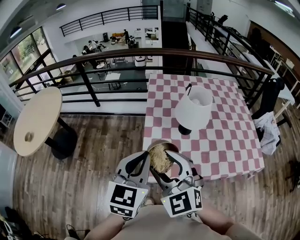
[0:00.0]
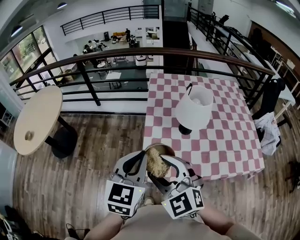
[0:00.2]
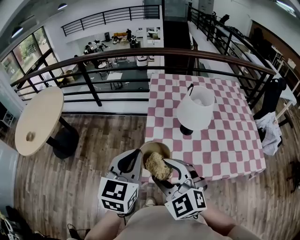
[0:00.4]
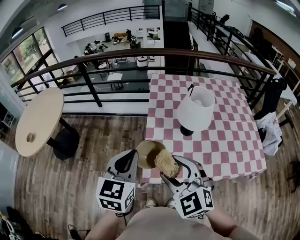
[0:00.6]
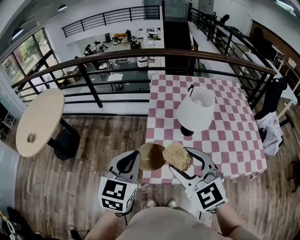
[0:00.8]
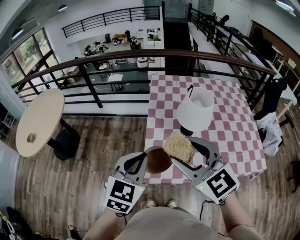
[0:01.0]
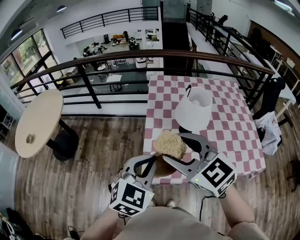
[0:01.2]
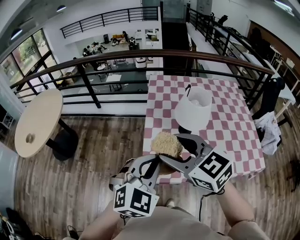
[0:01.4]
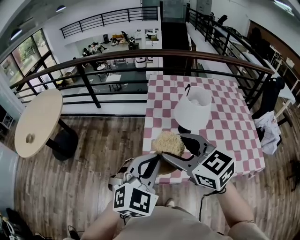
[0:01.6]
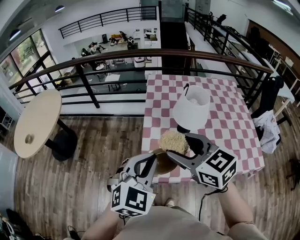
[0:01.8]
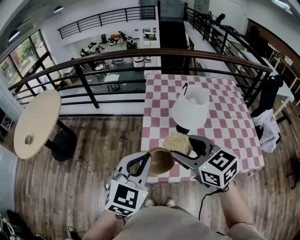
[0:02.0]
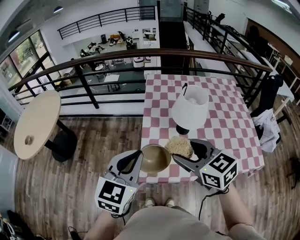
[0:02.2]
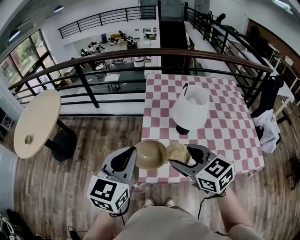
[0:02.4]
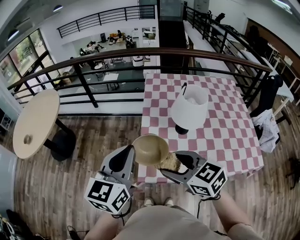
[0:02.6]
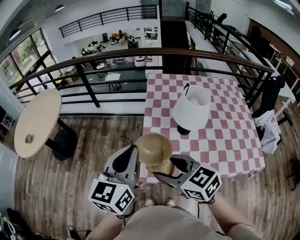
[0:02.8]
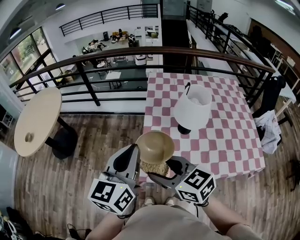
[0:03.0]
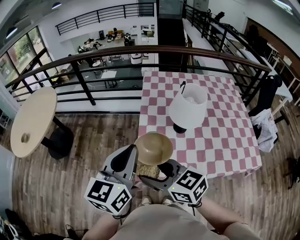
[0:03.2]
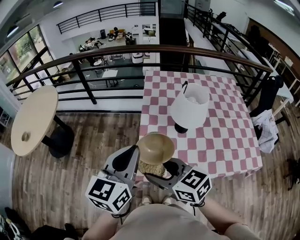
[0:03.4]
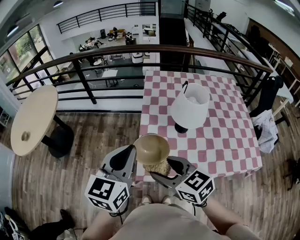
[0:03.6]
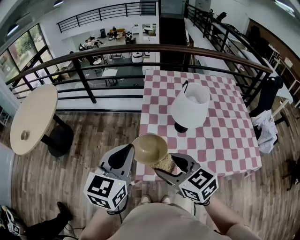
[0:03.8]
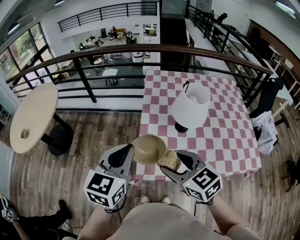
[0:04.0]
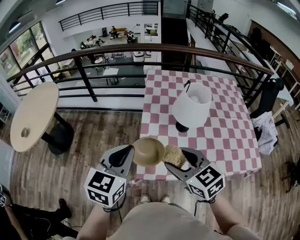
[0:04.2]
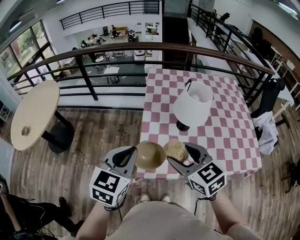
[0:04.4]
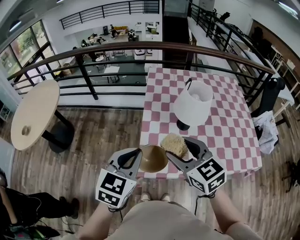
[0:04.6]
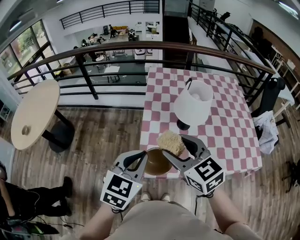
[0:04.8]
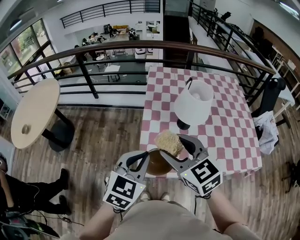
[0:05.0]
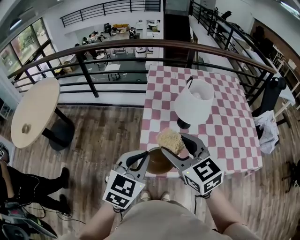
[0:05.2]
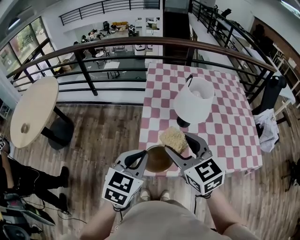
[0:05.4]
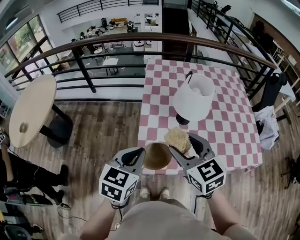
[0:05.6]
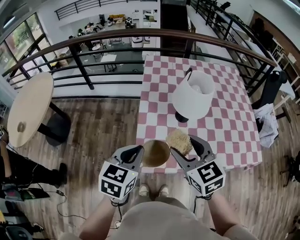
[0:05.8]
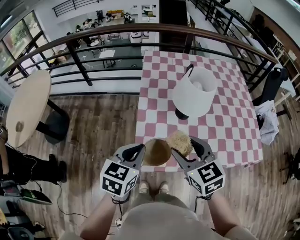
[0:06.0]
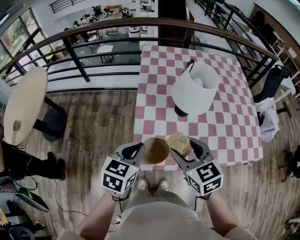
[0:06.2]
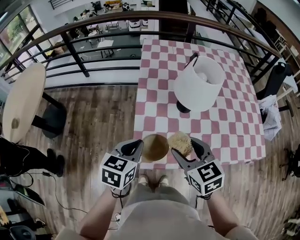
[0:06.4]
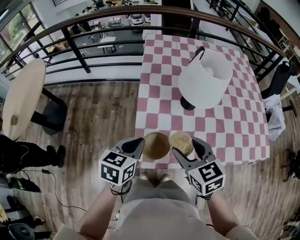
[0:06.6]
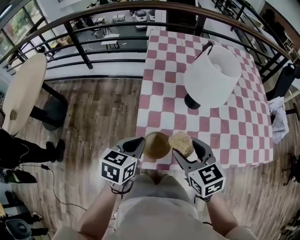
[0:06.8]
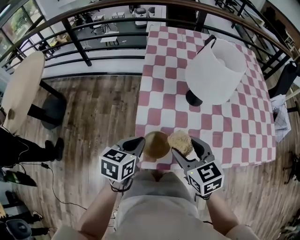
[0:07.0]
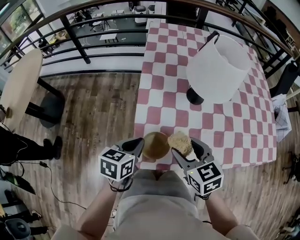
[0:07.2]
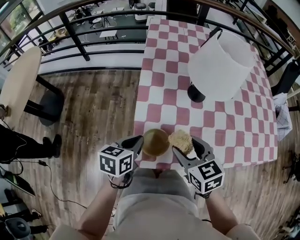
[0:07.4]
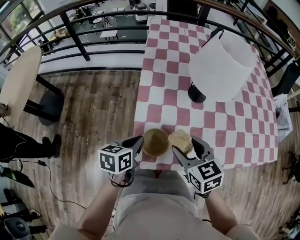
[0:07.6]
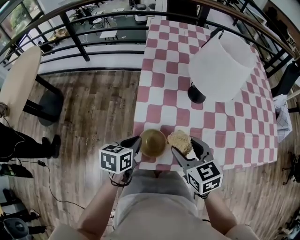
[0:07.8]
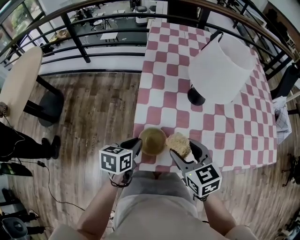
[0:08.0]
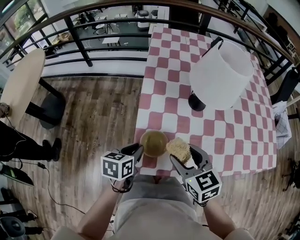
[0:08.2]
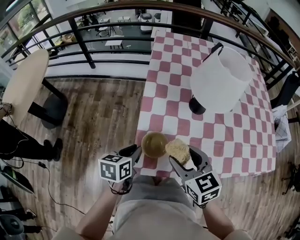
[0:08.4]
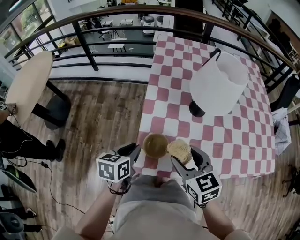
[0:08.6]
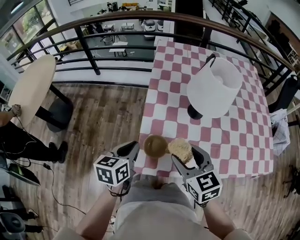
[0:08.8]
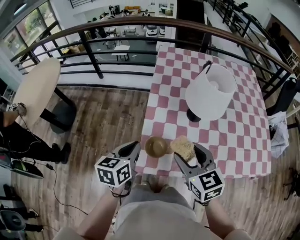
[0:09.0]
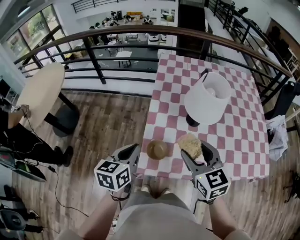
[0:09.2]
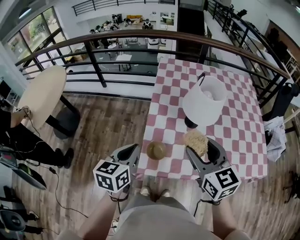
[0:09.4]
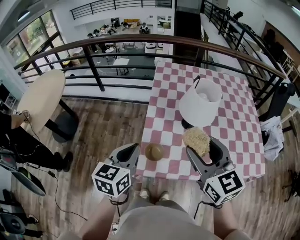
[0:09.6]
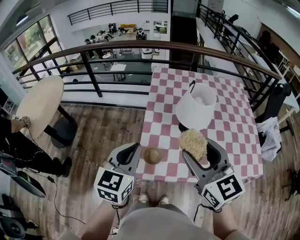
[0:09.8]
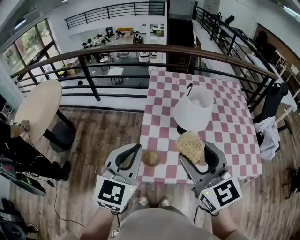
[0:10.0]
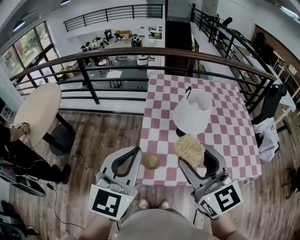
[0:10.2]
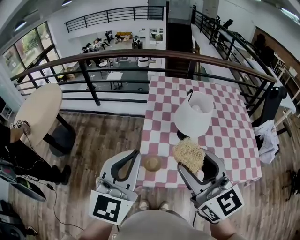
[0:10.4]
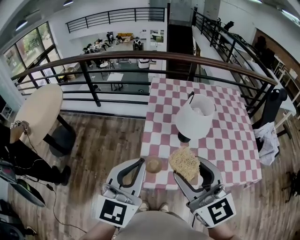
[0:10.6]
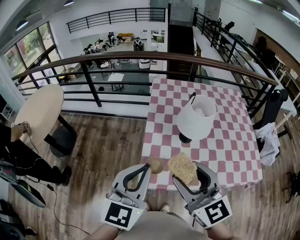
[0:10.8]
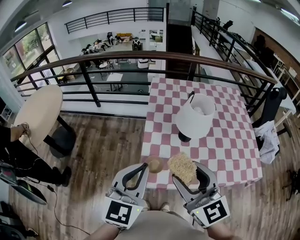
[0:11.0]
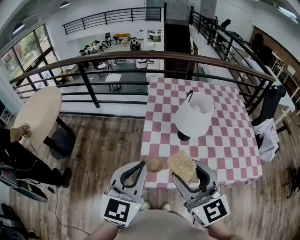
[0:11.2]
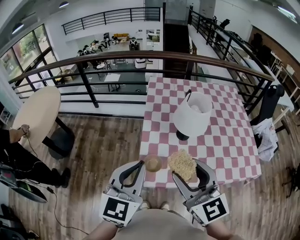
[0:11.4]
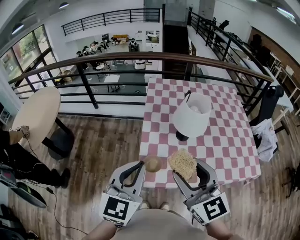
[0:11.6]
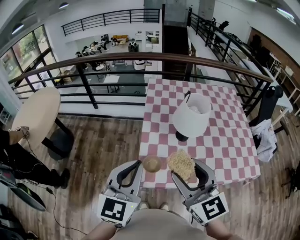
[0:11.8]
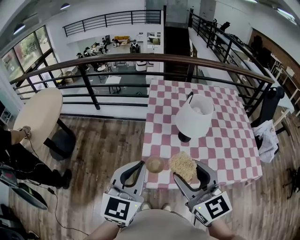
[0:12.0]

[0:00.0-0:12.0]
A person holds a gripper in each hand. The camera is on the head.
0:00.0 to 0:01.6: The left gripper turns by roughly 30 degrees. Meanwhile the right gripper shifts by about 5 cm, and swivels some 30 degrees.
0:01.6 to 0:03.0: The right gripper shifts approximately 5 cm downward; the left gripper moves to the left, approximately 5 cm, and rotates around the line of its fingers by some 50 degrees, counterclockwise from behind.
0:03.0 to 0:04.4: The right gripper goes approximately 10 cm to the right. The left gripper goes approximately 5 cm downward, and changes its angle by roughly 30 degrees.
0:04.4 to 0:06.0: The right gripper shifts by about 5 cm; the left gripper is displaced downward by about 10 cm.
0:06.0 to 0:07.6: The grippers both shift downward by about 25 cm. The left gripper rotates some 30 degrees.
0:07.6 to 0:09.0: Both grippers travel together upward, roughly 15 cm.
0:09.0 to 0:10.4: Both grippers move upward, roughly 25 cm. The left gripper turns by some 40 degrees. Meanwhile the right gripper swivels about 20 degrees.
0:10.4 to 0:12.0: The two grippers go about 5 cm downward.

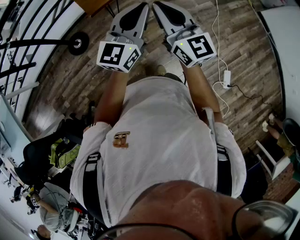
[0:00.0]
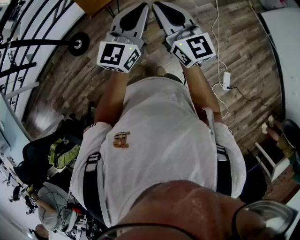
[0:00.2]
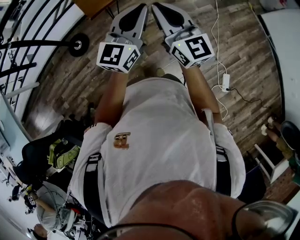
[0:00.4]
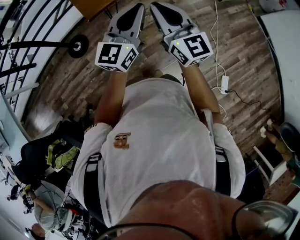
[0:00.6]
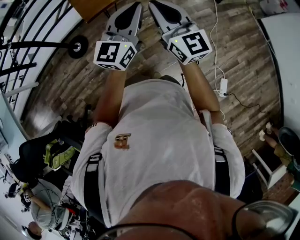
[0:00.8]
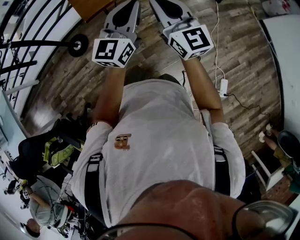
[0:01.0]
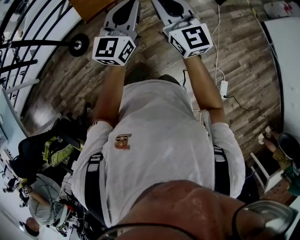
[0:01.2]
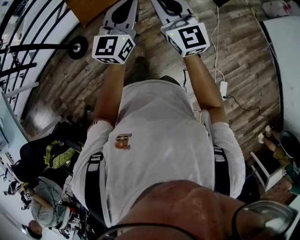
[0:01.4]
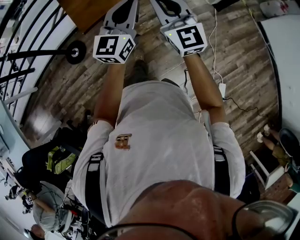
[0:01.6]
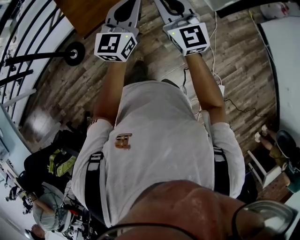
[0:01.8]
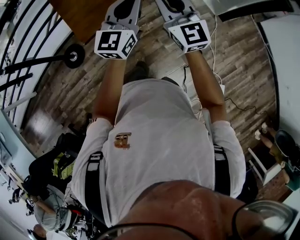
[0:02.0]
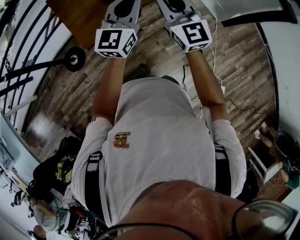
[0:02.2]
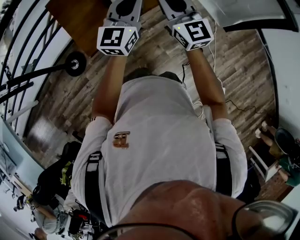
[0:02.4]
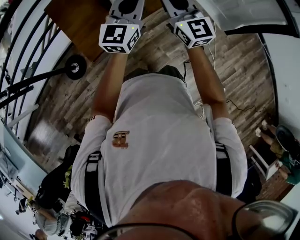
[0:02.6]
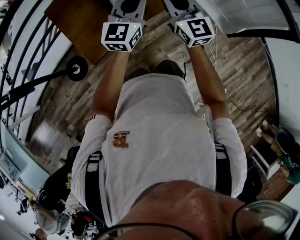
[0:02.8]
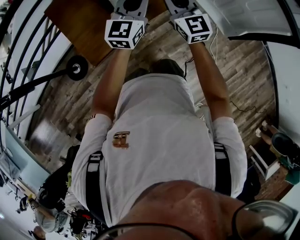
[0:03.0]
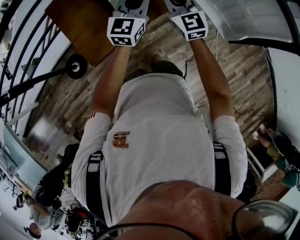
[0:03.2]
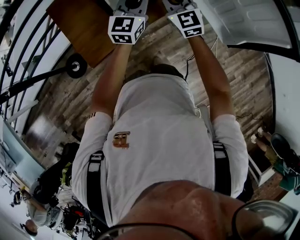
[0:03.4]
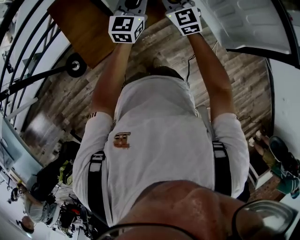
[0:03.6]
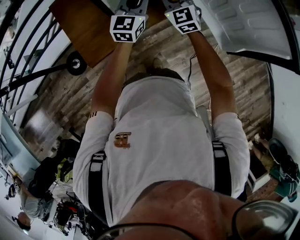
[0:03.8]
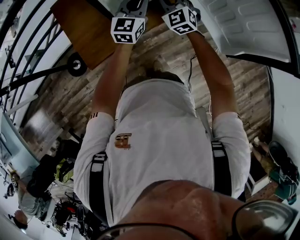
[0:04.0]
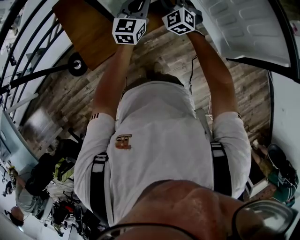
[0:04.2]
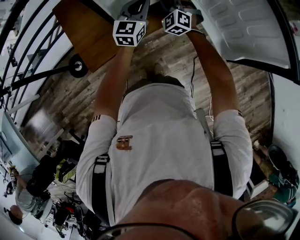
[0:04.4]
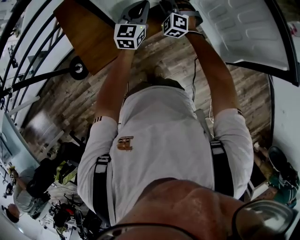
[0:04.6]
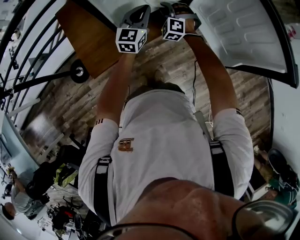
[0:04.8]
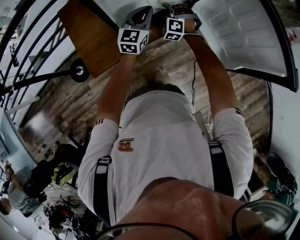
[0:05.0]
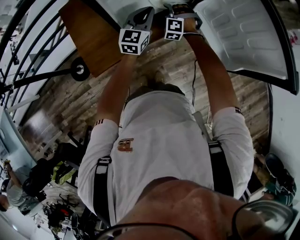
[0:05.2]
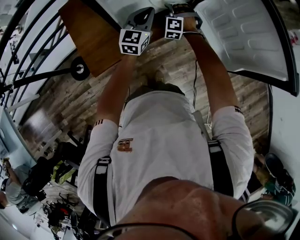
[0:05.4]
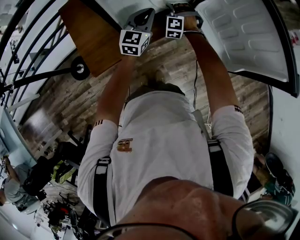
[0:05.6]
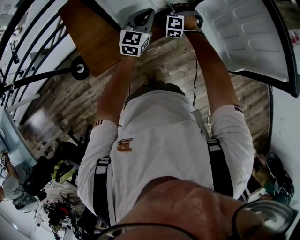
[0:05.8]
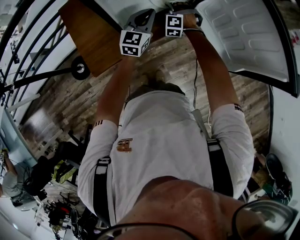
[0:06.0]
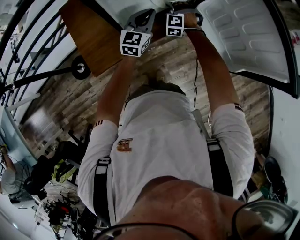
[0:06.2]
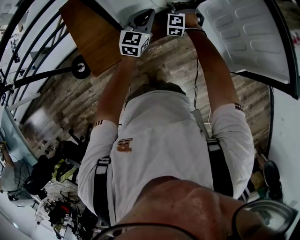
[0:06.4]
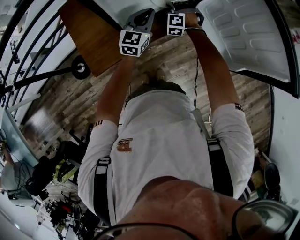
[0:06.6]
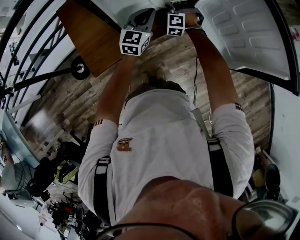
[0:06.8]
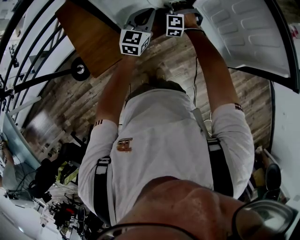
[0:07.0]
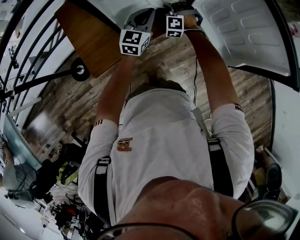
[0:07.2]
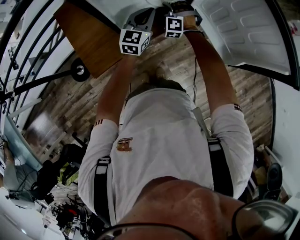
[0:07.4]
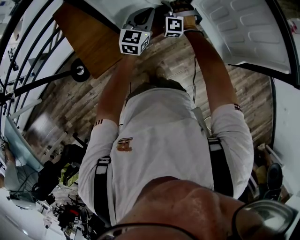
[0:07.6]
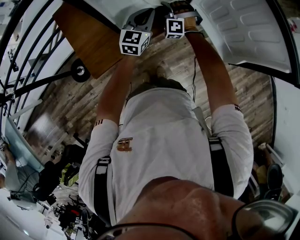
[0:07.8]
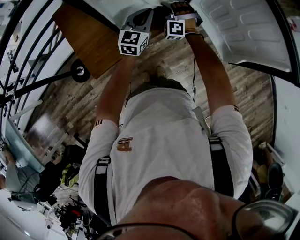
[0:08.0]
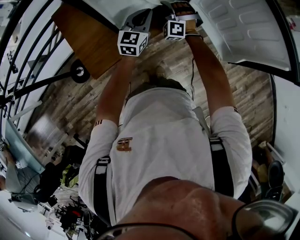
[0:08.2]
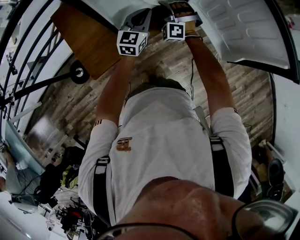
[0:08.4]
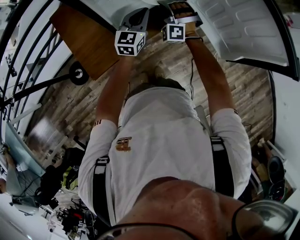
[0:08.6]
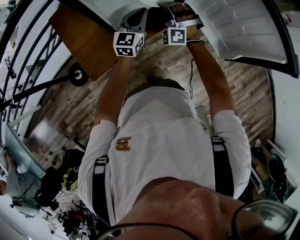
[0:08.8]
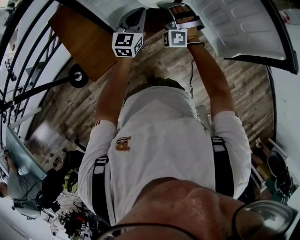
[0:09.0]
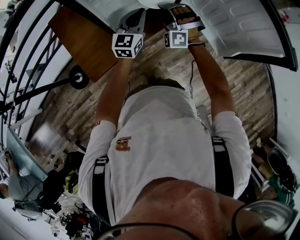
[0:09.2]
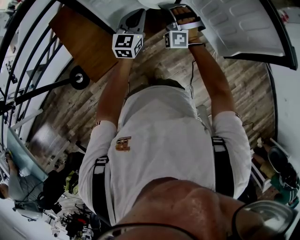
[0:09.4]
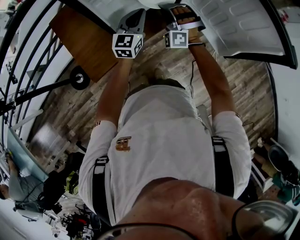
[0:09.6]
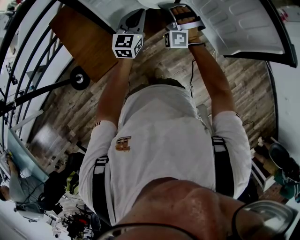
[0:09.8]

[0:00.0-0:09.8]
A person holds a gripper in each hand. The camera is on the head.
0:00.0 to 0:01.4: Both grippers travel together forward and to the right, roughly 15 cm.
0:01.4 to 0:02.8: The grippers both shift forward by roughly 40 cm.
0:02.8 to 0:04.2: Both grippers travel together forward and downward, some 20 cm. The right gripper rotates some 40 degrees.
0:04.2 to 0:05.6: The right gripper heads downward, covering roughly 10 cm, changes its angle by about 40 degrees, and opens up.
0:05.6 to 0:07.0: The grippers make only small movements.
0:07.0 to 0:08.4: The right gripper shifts about 5 cm upward, and swivels approximately 20 degrees.
0:08.4 to 0:09.8: The right gripper heads upward, covering approximately 5 cm.

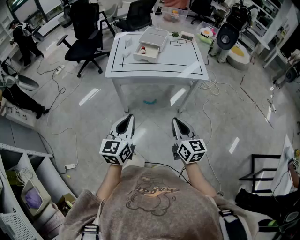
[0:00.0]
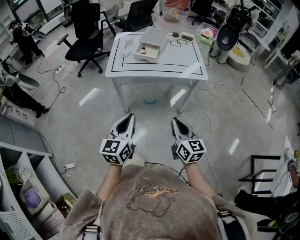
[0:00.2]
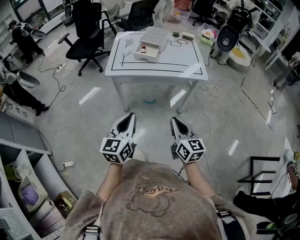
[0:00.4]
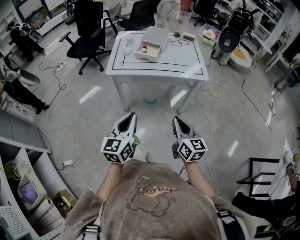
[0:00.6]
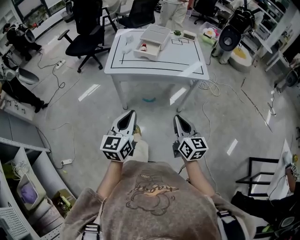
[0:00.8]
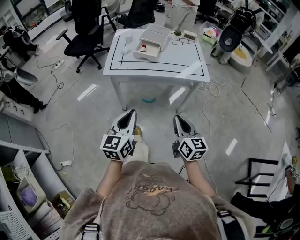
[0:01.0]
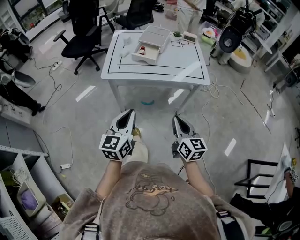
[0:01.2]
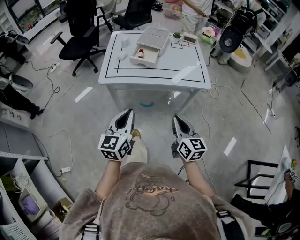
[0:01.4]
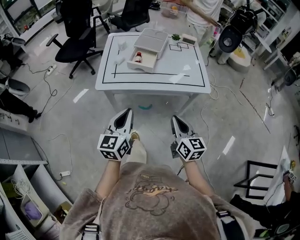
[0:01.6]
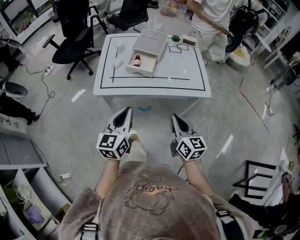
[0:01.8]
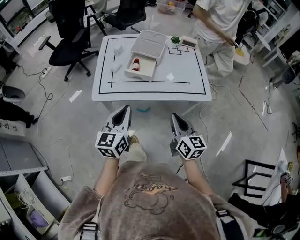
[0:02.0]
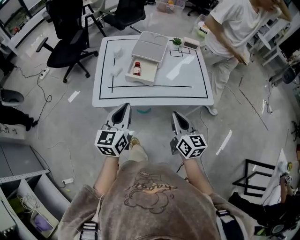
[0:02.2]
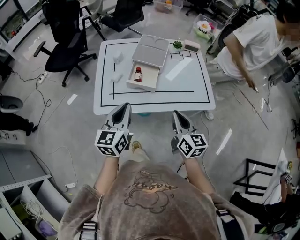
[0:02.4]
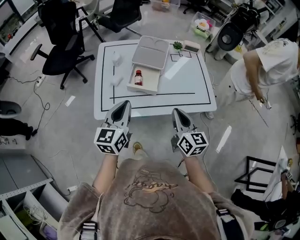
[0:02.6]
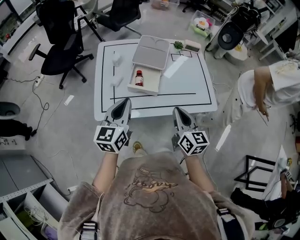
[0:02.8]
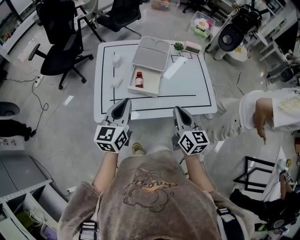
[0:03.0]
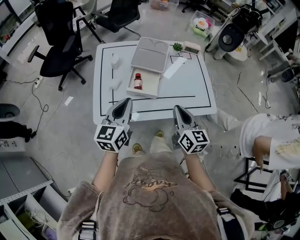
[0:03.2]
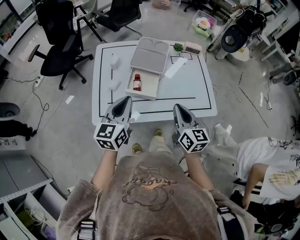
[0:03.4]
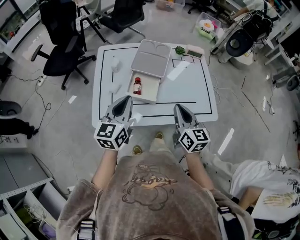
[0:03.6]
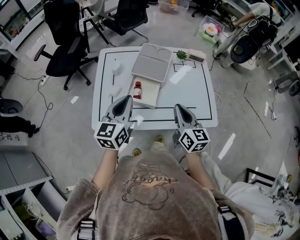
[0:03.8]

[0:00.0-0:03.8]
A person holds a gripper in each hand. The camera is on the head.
0:00.0 to 0:01.2: The two grippers go some 5 cm forward.
0:01.2 to 0:02.6: The grippers both shift forward by some 30 cm.
0:02.6 to 0:03.8: Both grippers move forward, roughly 10 cm.
